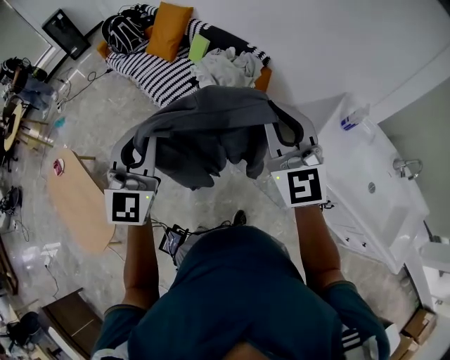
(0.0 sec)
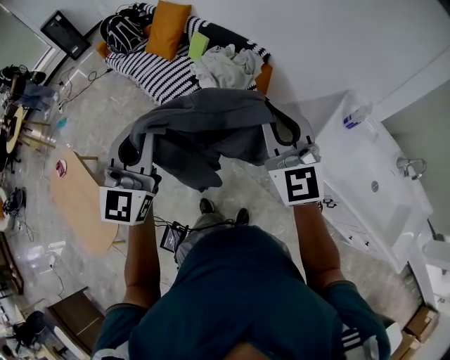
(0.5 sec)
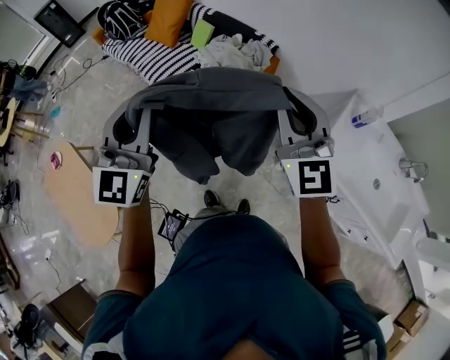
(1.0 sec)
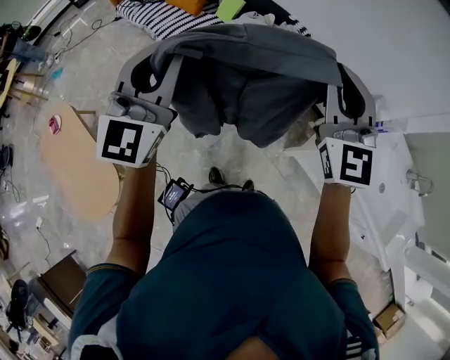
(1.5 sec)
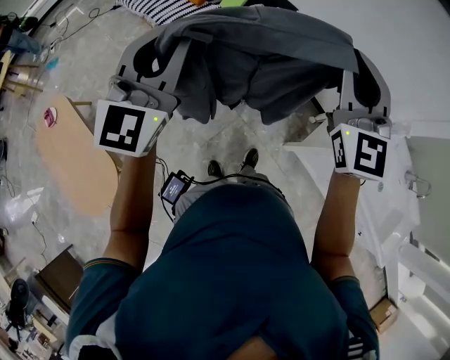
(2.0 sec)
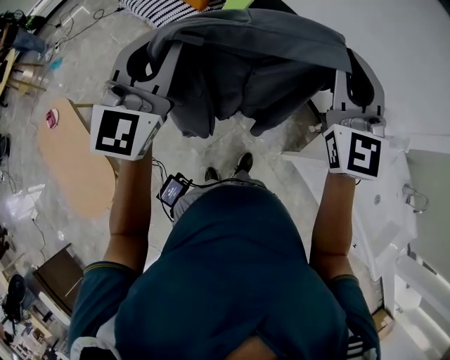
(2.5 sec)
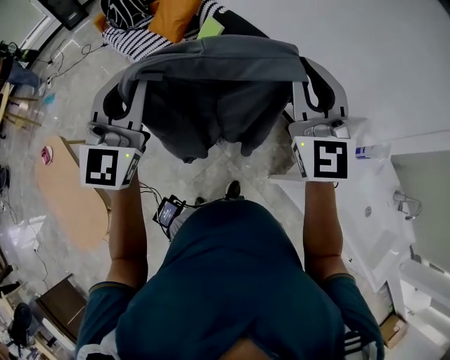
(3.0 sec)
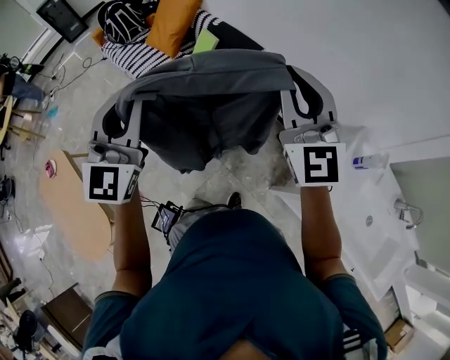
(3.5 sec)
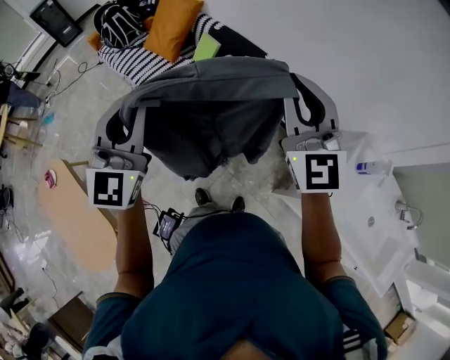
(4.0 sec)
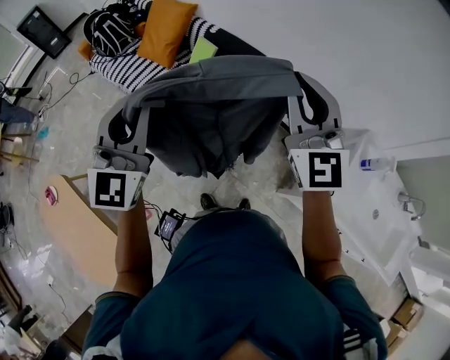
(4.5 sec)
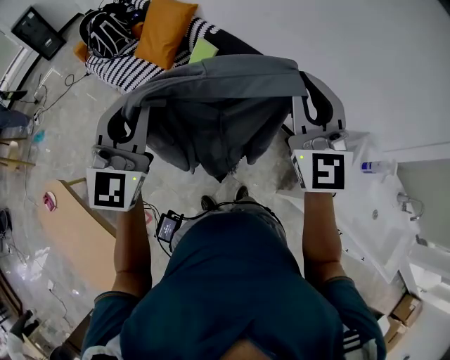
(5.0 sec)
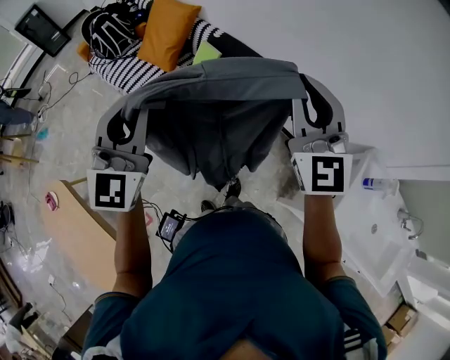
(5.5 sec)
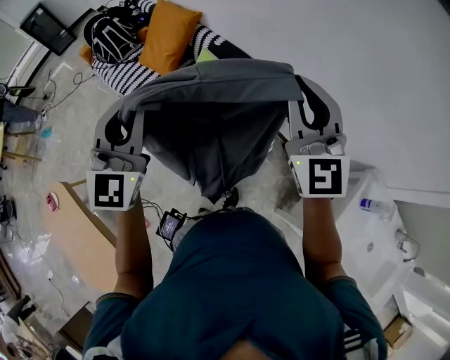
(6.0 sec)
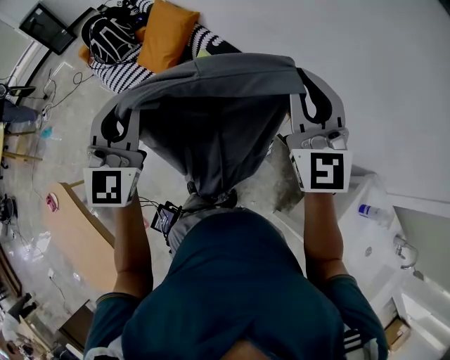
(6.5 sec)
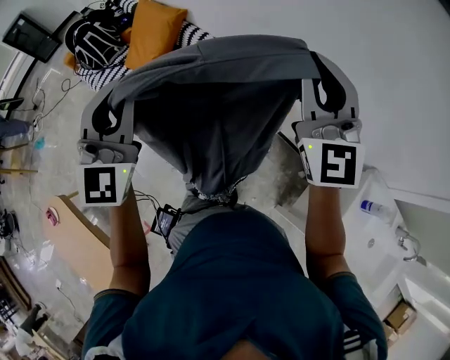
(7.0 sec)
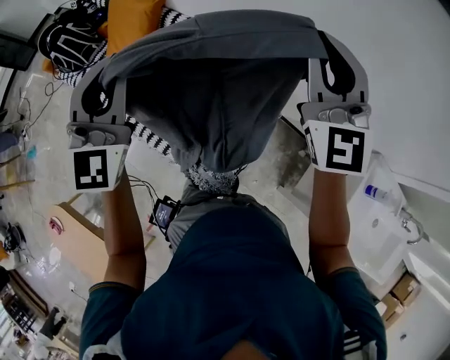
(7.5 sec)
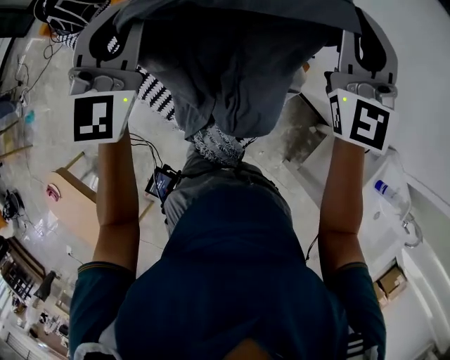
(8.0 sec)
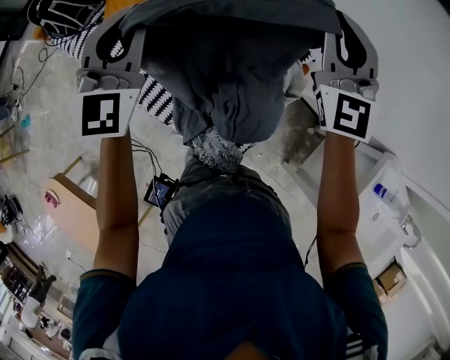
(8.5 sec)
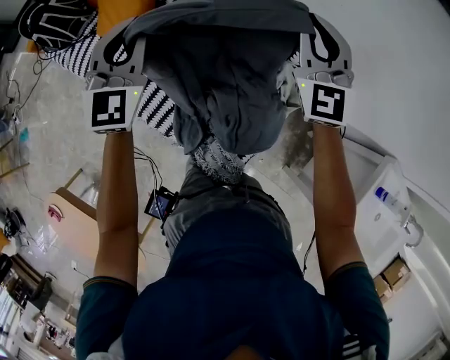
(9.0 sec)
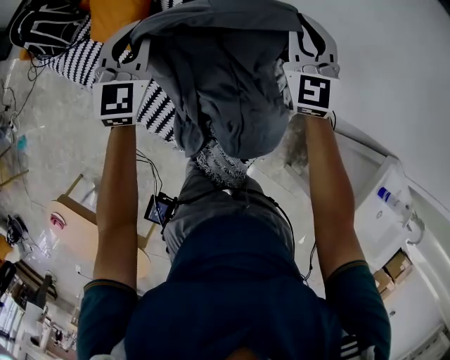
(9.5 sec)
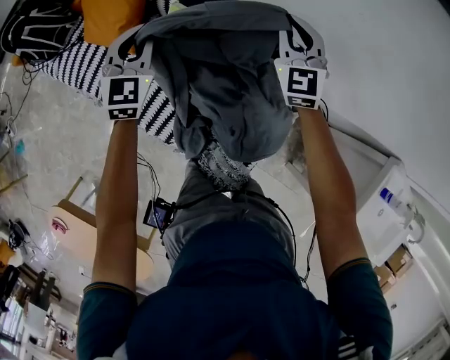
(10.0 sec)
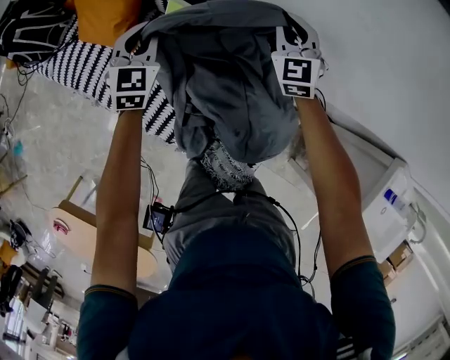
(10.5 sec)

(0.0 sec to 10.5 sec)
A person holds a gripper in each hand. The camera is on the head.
0.0 sec - 2.0 sec: The grippers both shift forward and to the left by about 15 cm.
2.0 sec - 4.0 sec: The left gripper moves forward and to the right, some 10 cm. Meanwhile the right gripper goes some 10 cm forward.
4.0 sec - 6.5 sec: The grippers both shift forward by approximately 20 cm.
6.5 sec - 8.5 sec: Both grippers move forward and downward, approximately 25 cm.
8.5 sec - 10.5 sec: The two grippers go approximately 30 cm downward and forward. The right gripper rotates some 20 degrees; the left gripper turns by roughly 20 degrees.

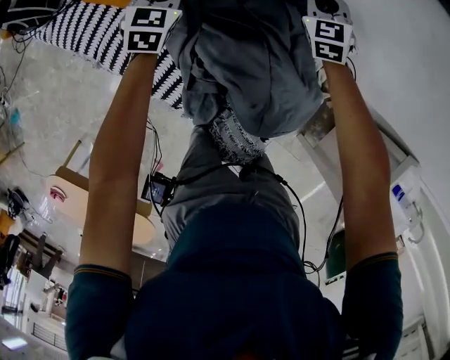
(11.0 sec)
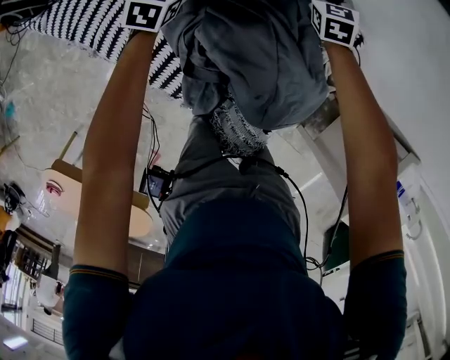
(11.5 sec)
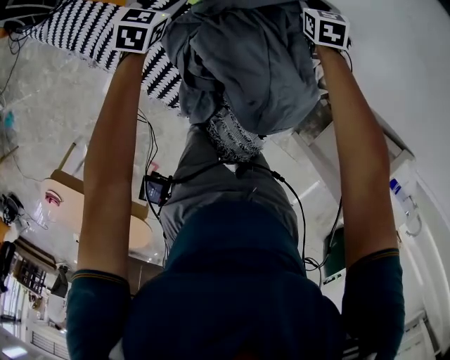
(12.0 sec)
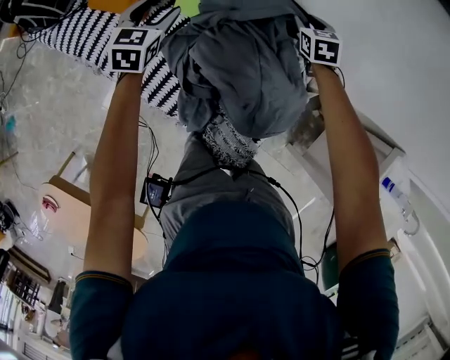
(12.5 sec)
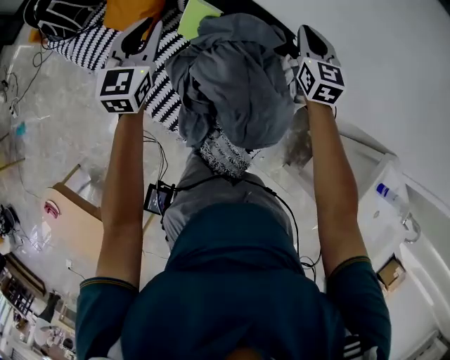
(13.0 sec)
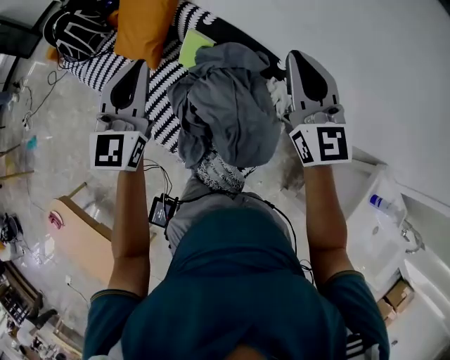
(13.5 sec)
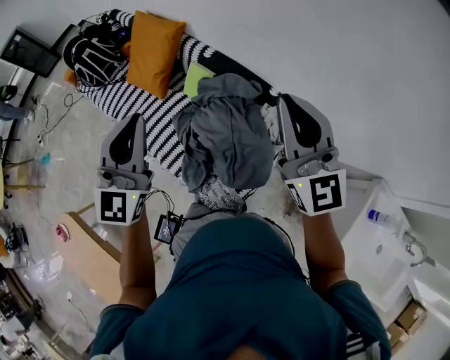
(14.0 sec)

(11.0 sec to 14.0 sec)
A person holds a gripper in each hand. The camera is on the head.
11.0 sec - 12.5 sec: The left gripper shifts some 5 cm backward, and opens its fingers; the right gripper moves roughly 5 cm, rotates some 30 degrees, and opens up.
12.5 sec - 14.0 sec: The two grippers go some 50 cm upward and backward. The left gripper points its fingers approximately 40 degrees further upward, and closes its fingers, while the right gripper angles its fingers upward, by about 60 degrees, and closes up.

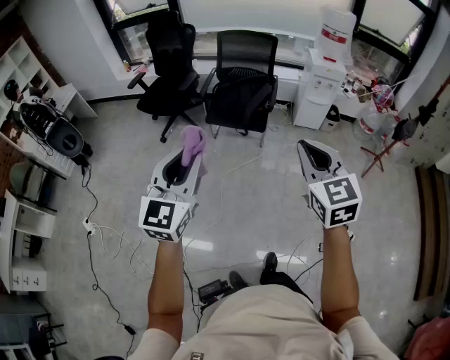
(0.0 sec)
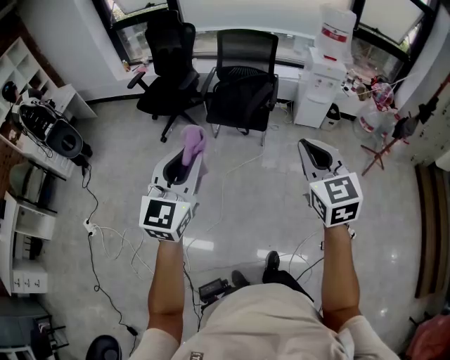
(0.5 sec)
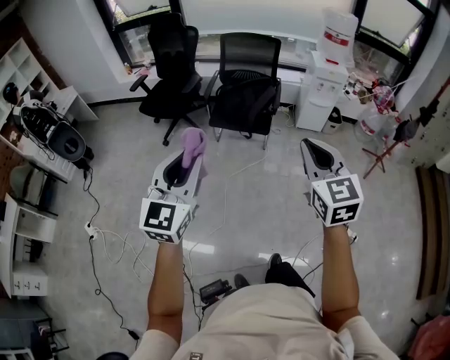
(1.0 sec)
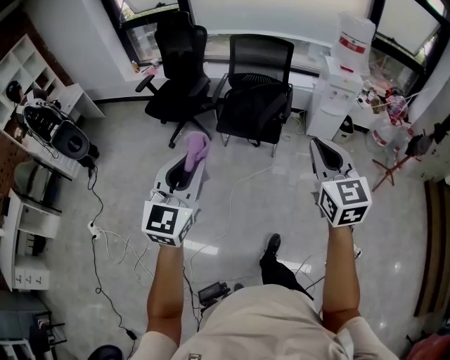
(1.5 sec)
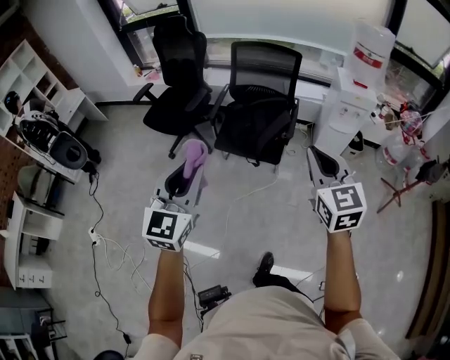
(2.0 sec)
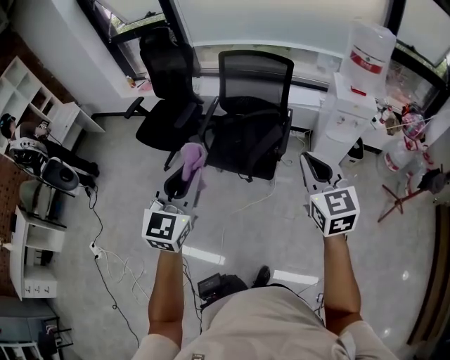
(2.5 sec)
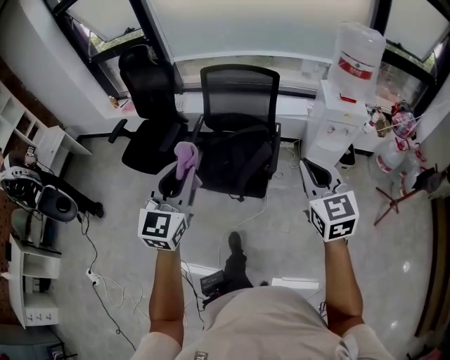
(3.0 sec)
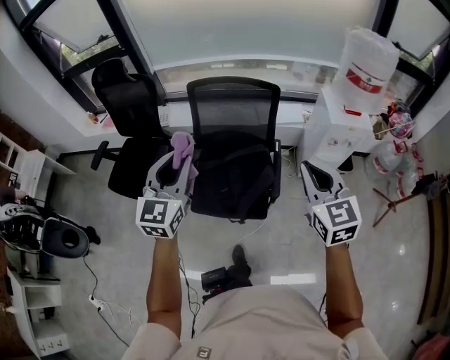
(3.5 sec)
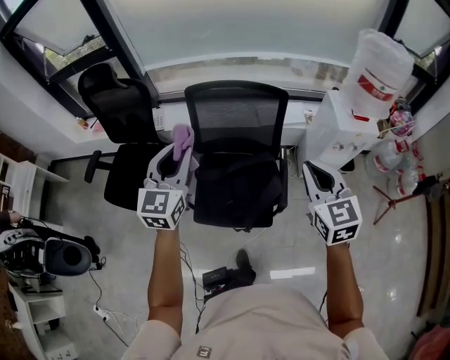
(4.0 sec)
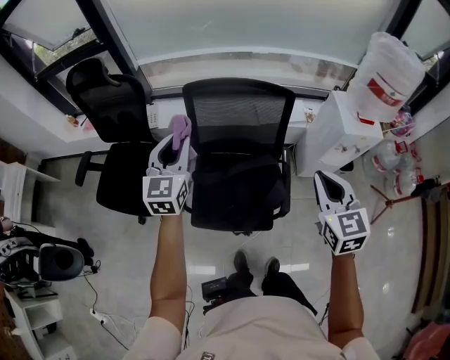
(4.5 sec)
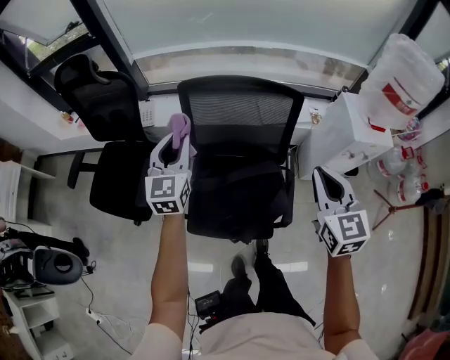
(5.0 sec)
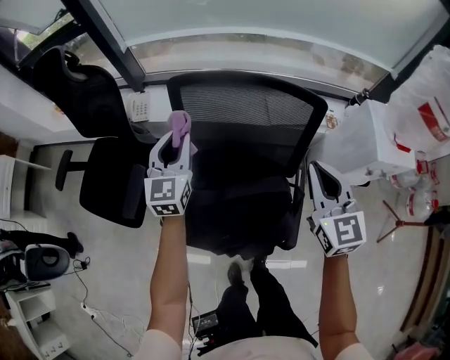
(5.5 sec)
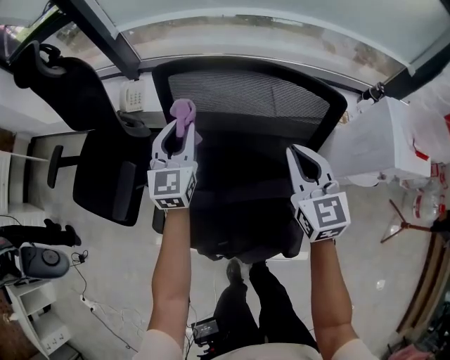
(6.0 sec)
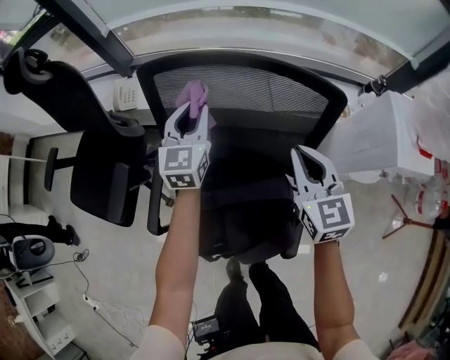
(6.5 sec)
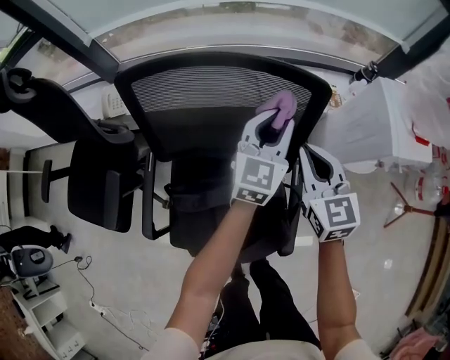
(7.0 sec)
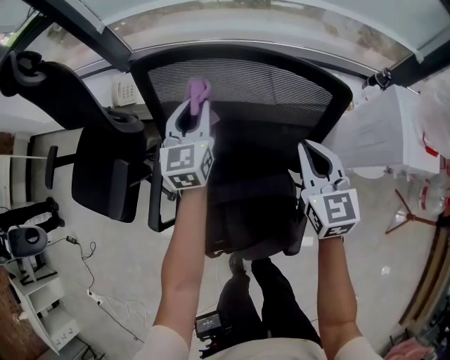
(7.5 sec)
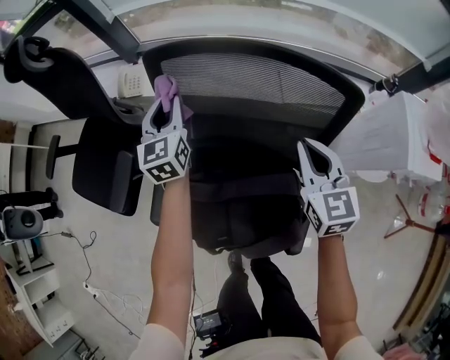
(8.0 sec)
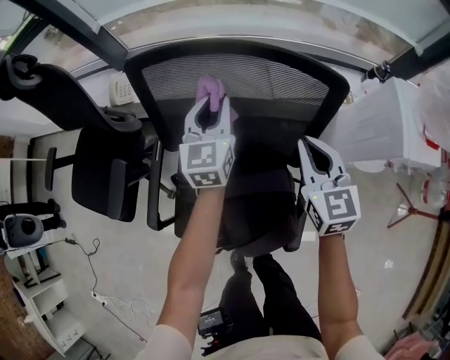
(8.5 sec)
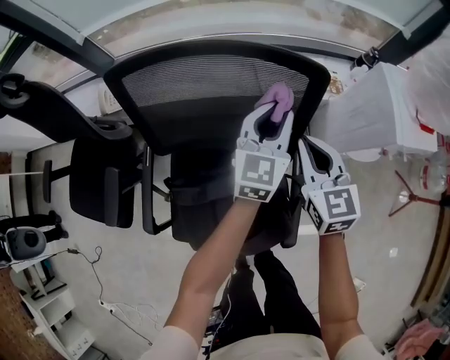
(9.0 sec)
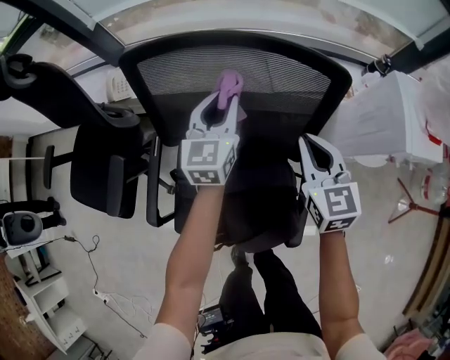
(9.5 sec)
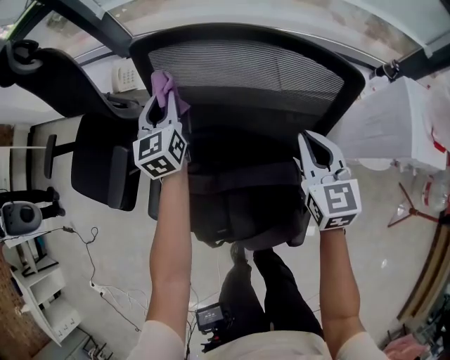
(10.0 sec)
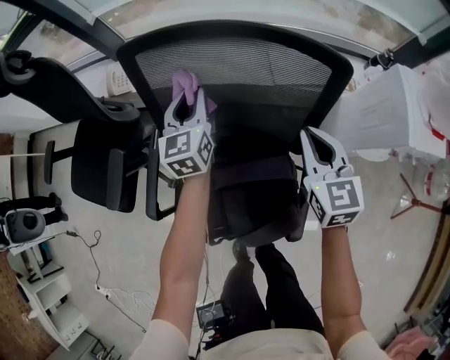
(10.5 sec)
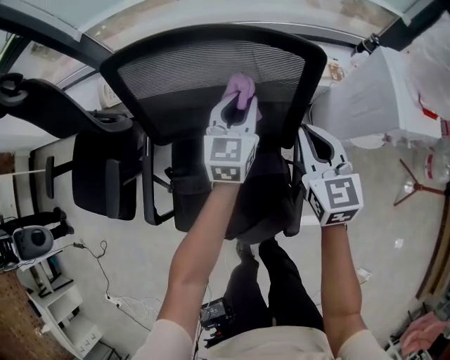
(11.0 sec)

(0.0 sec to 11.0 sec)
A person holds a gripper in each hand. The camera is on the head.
0.0 sec - 2.0 sec: Both grippers move forward, about 30 cm.
2.0 sec - 3.5 sec: Both grippers travel together forward, approximately 40 cm.
3.5 sec - 5.5 sec: Both grippers travel together forward and downward, about 40 cm.
5.5 sec - 7.5 sec: The right gripper heads downward and forward, covering approximately 20 cm. The left gripper moves forward and downward, some 15 cm, and reaches roughly 30 cm to the right, then returns.
7.5 sec - 9.0 sec: The right gripper ends up about 5 cm from where it was, while the left gripper moves to the right, approximately 25 cm, and rotates about 20 degrees.
9.0 sec - 11.0 sec: The left gripper reaches roughly 35 cm to the left, then returns.

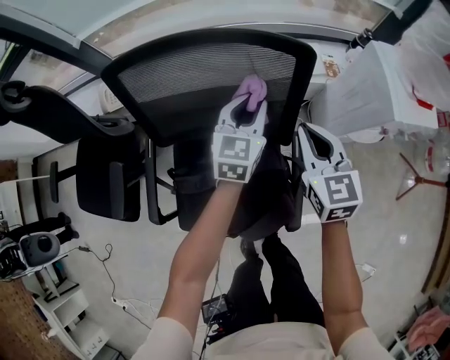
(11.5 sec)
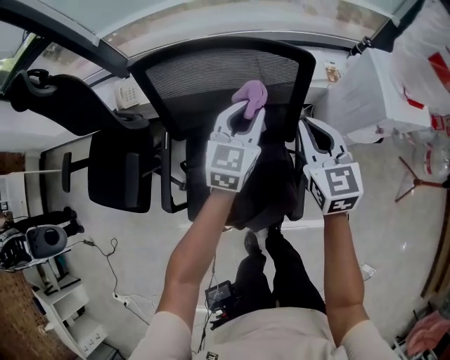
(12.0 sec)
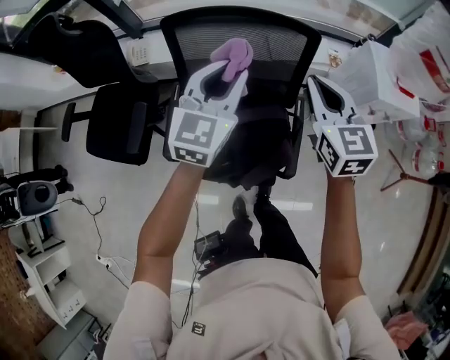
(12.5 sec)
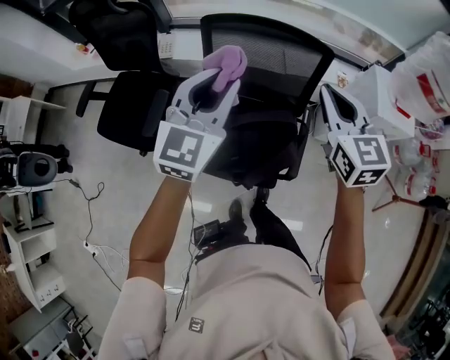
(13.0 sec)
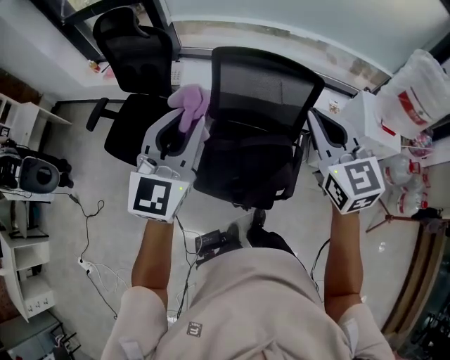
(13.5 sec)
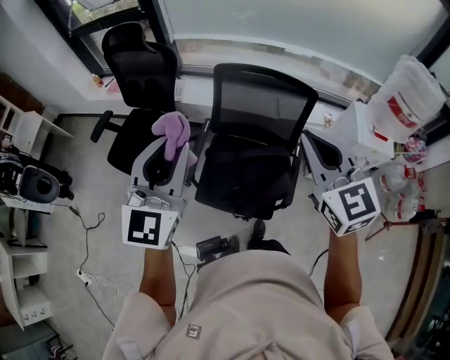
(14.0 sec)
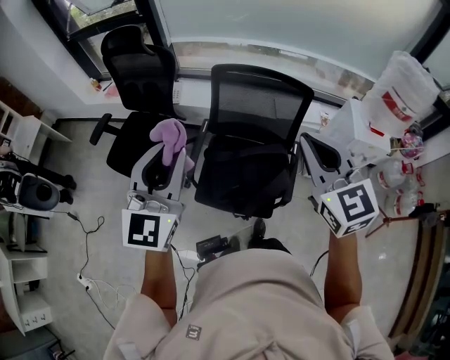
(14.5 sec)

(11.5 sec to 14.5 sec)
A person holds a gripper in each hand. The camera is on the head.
11.5 sec - 13.0 sec: The left gripper moves upward, backward and to the left, approximately 50 cm, while the right gripper travels upward and backward by about 30 cm.
13.0 sec - 14.5 sec: The left gripper is displaced backward, to the left and upward by about 25 cm; the right gripper is displaced backward, upward and to the left by roughly 25 cm.
